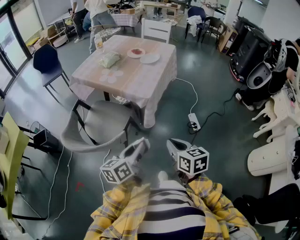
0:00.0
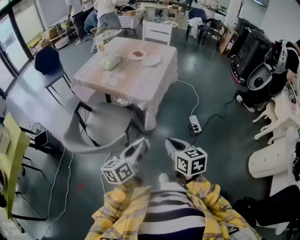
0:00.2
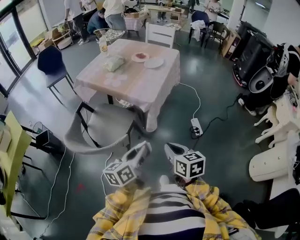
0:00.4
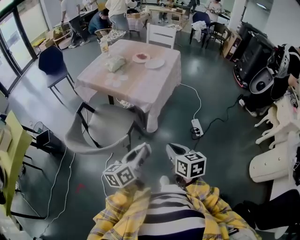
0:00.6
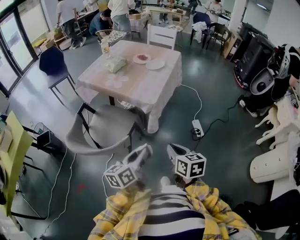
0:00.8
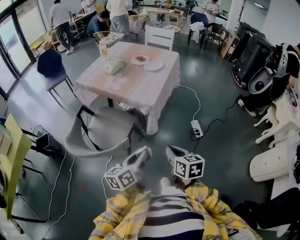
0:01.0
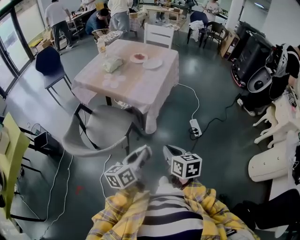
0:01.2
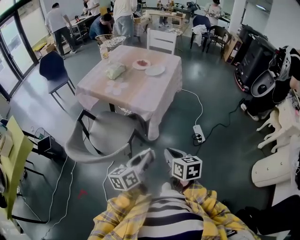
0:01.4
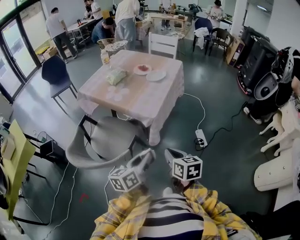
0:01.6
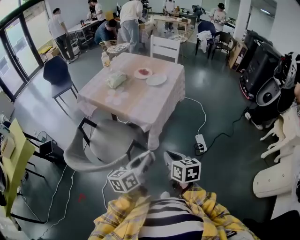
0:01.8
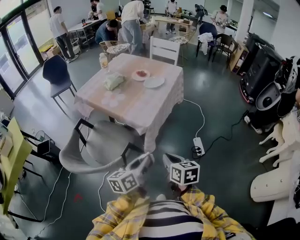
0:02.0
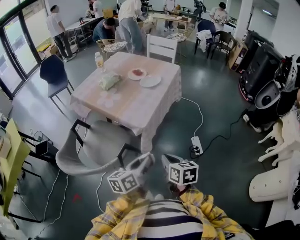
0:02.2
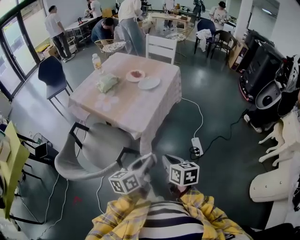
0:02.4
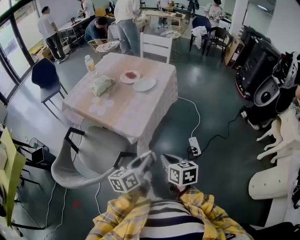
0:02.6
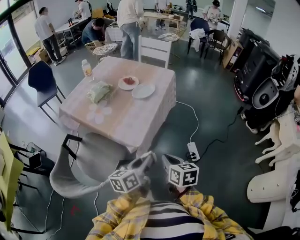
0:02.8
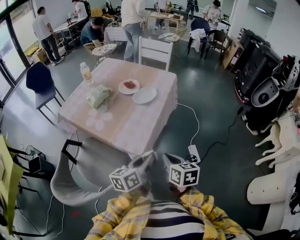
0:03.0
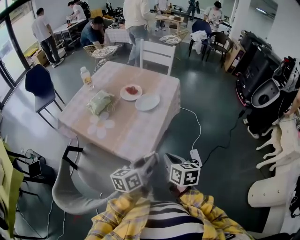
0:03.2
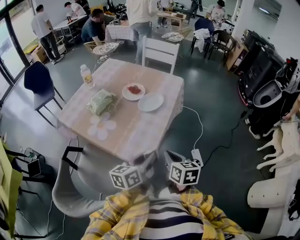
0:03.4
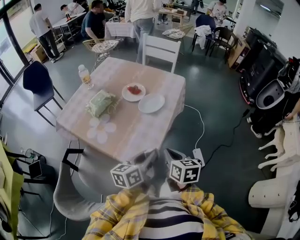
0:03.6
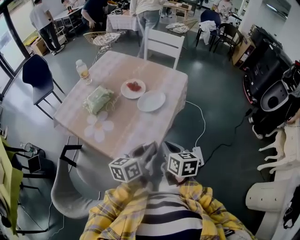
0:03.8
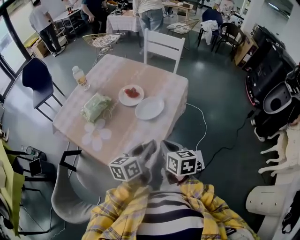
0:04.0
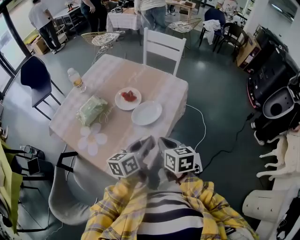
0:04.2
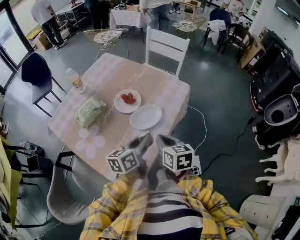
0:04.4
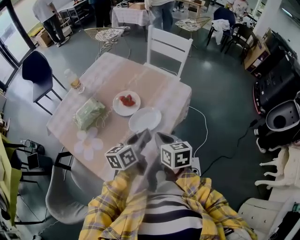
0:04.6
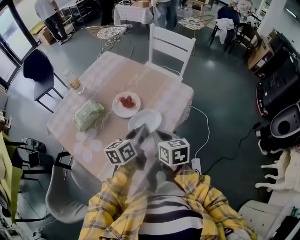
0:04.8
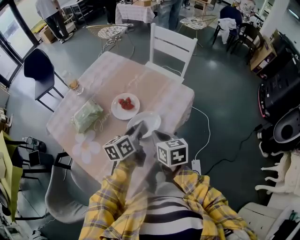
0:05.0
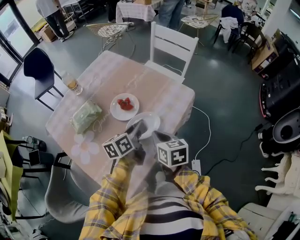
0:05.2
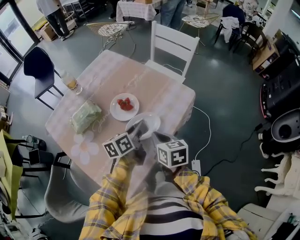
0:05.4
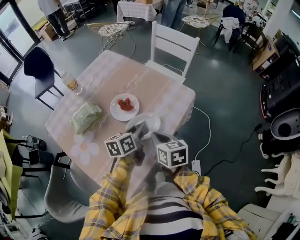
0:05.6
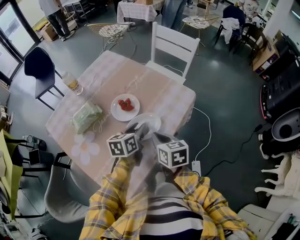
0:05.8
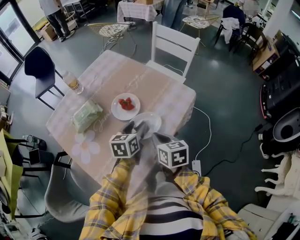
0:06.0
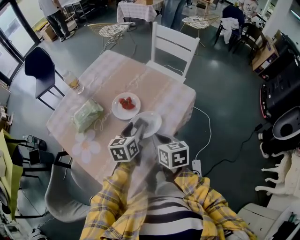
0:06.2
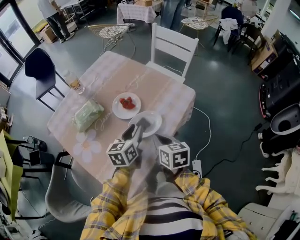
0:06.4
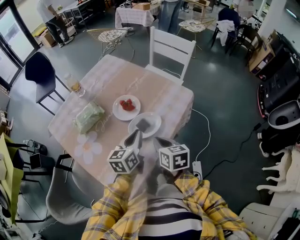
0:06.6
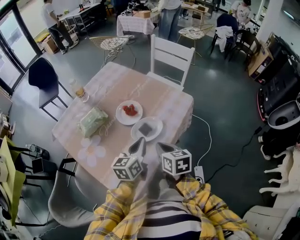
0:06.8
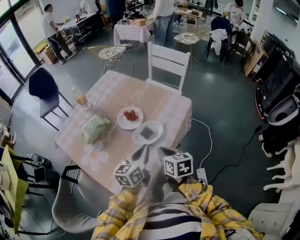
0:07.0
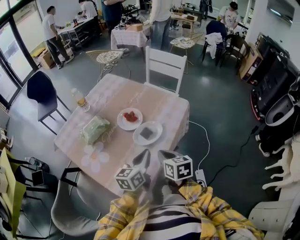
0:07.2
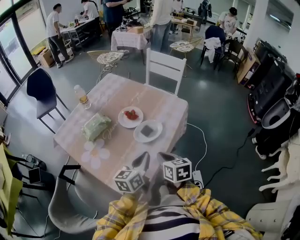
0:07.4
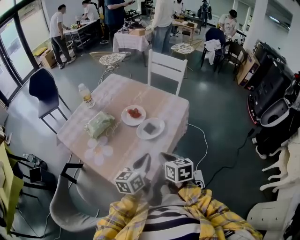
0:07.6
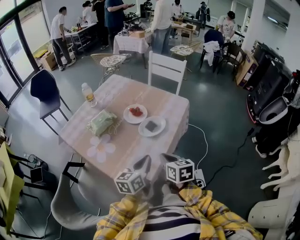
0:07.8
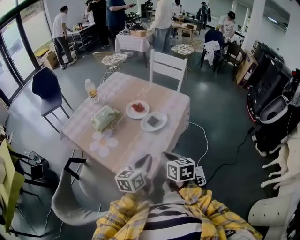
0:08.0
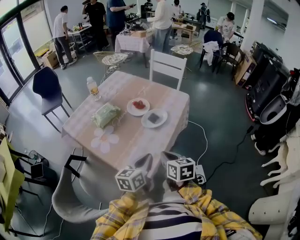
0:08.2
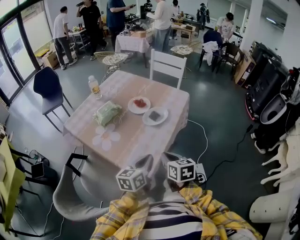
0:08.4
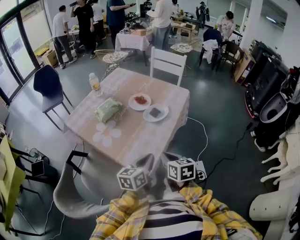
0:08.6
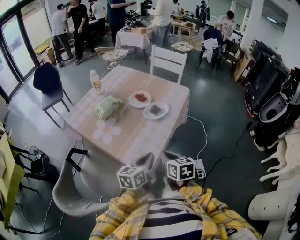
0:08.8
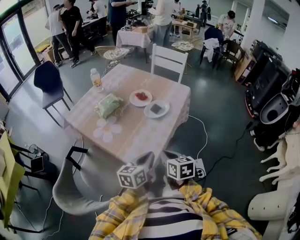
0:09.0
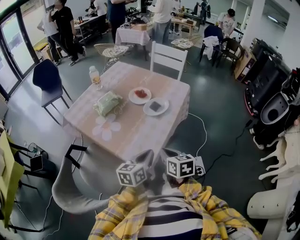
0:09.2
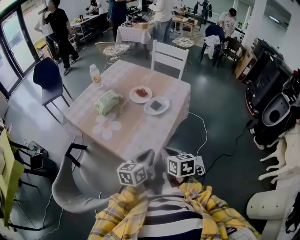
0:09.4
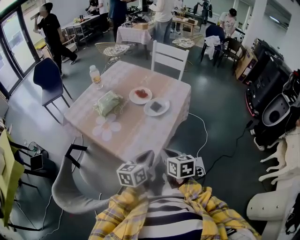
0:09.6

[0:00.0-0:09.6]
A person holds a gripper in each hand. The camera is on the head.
0:00.0 to 0:01.6: The right gripper heads forward, covering roughly 5 cm. The left gripper moves approximately 5 cm.
0:01.6 to 0:03.2: Both grippers travel together forward, some 25 cm.
0:03.2 to 0:04.8: The grippers both shift forward by approximately 30 cm.
0:06.4 to 0:08.0: The two grippers go roughly 20 cm backward. The left gripper closes up.
0:08.0 to 0:09.6: Both grippers travel together backward, approximately 5 cm.

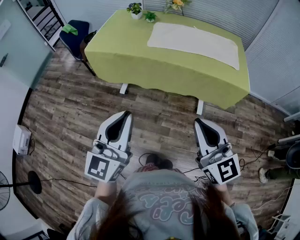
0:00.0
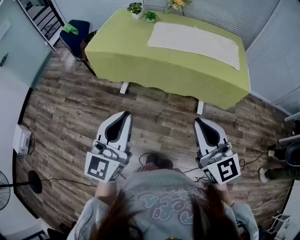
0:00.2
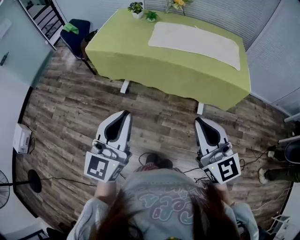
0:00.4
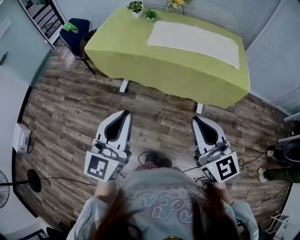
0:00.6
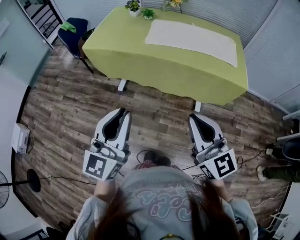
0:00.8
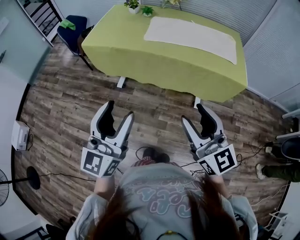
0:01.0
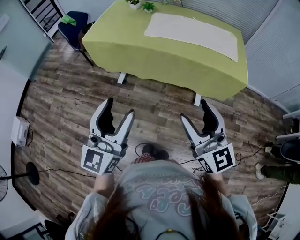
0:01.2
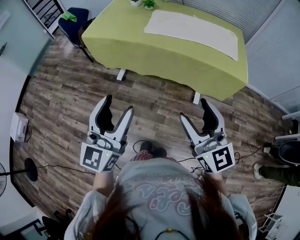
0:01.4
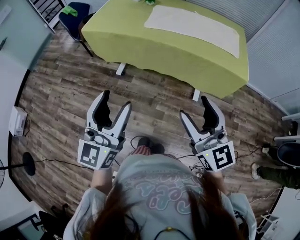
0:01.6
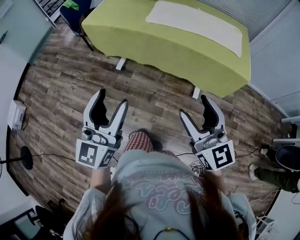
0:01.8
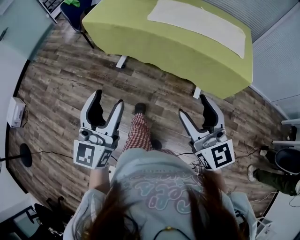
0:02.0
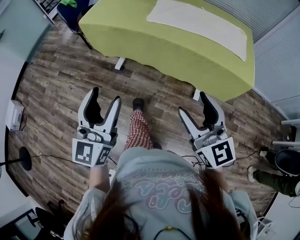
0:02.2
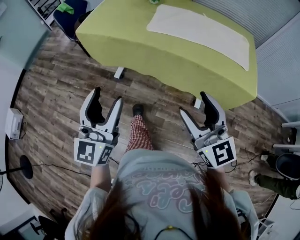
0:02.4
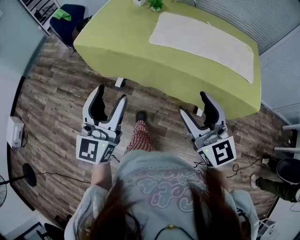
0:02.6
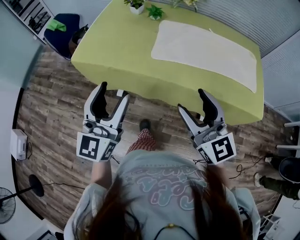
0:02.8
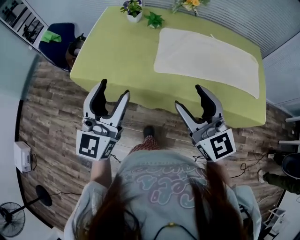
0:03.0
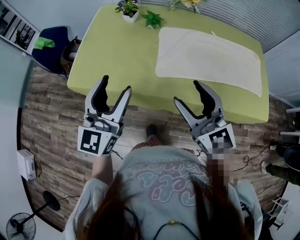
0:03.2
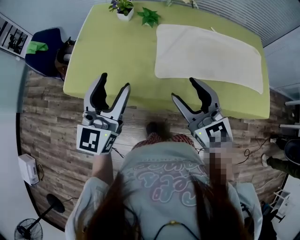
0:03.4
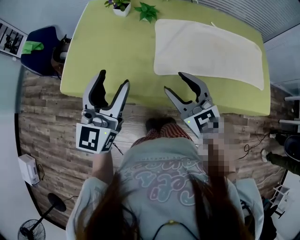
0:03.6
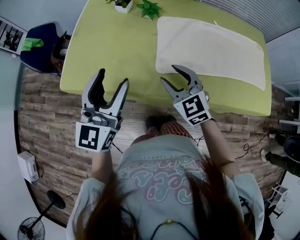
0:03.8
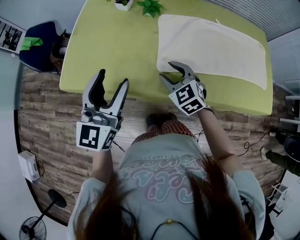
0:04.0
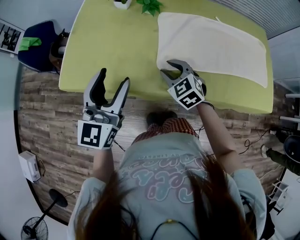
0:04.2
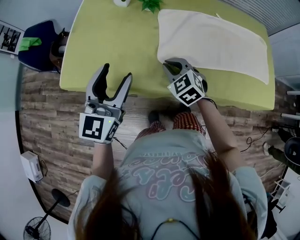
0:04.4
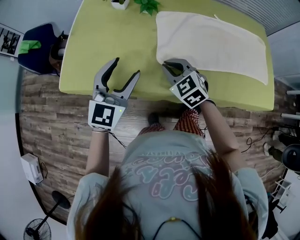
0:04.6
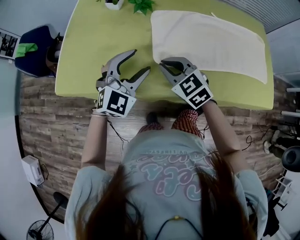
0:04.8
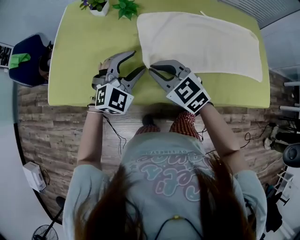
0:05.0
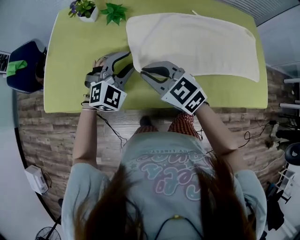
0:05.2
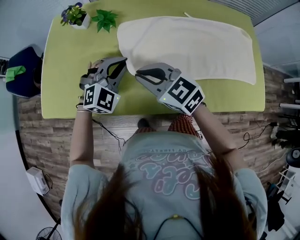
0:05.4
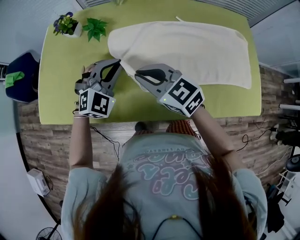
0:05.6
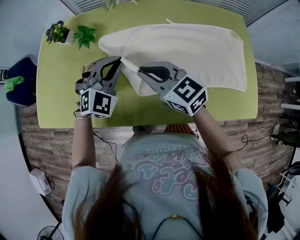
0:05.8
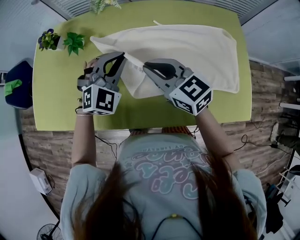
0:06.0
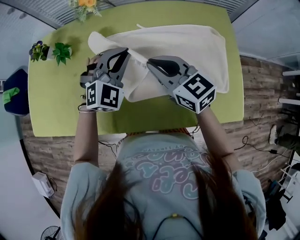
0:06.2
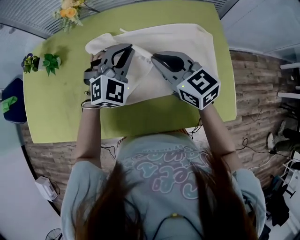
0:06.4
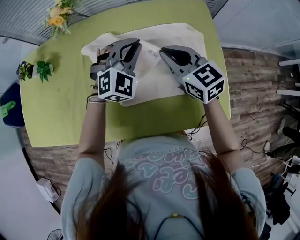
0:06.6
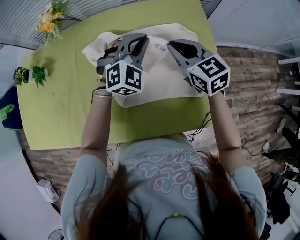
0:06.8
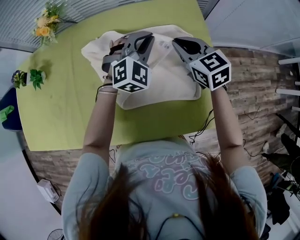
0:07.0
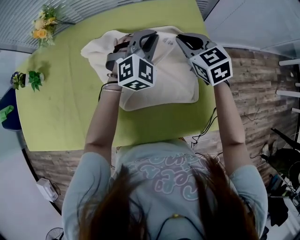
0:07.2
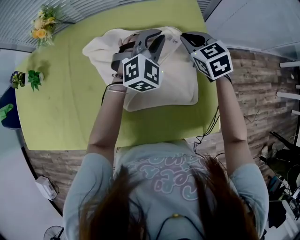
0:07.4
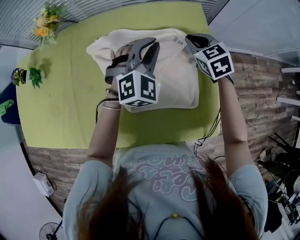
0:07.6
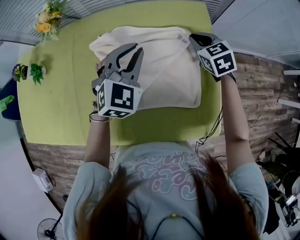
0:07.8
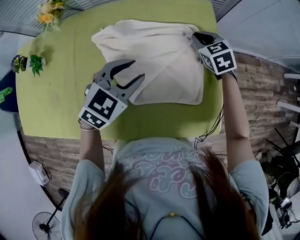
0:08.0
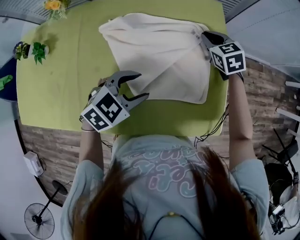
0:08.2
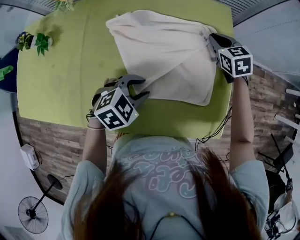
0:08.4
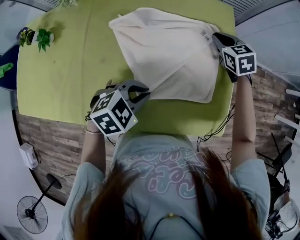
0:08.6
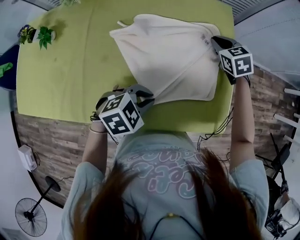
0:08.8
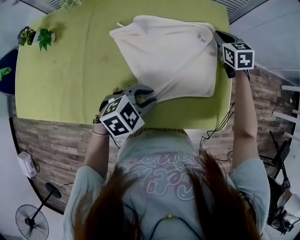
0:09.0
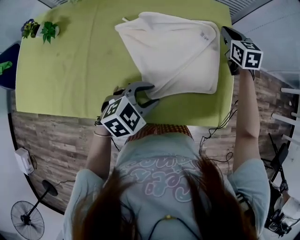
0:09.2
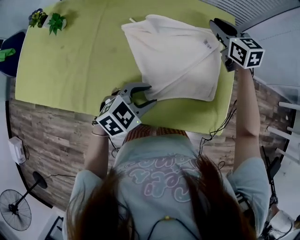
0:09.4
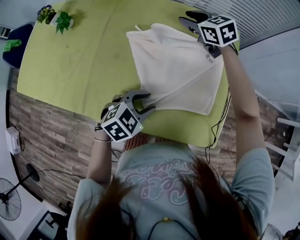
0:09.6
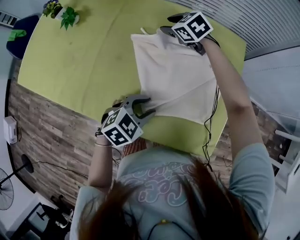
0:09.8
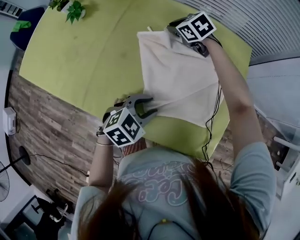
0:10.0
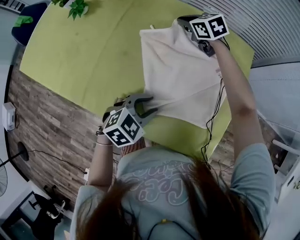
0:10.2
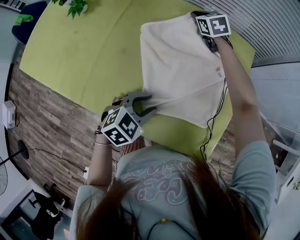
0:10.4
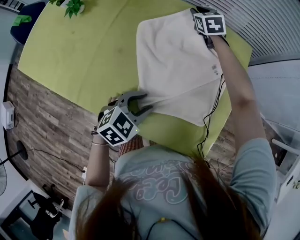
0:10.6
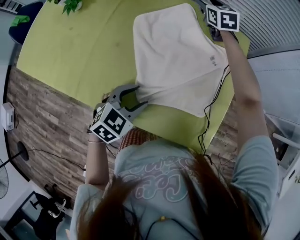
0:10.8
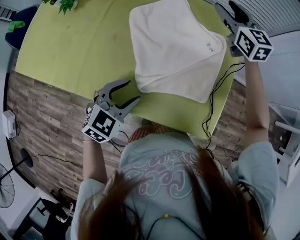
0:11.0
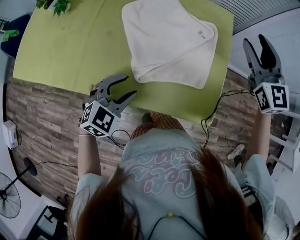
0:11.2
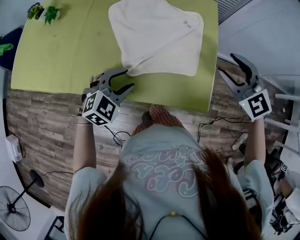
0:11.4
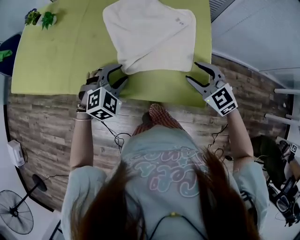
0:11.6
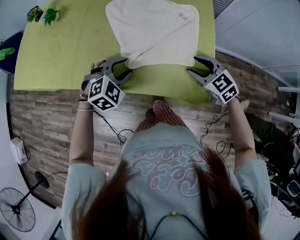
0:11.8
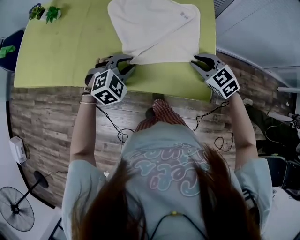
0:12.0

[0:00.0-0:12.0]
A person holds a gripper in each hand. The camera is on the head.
0:00.0 to 0:01.6: The left gripper opens up. Meanwhile the right gripper opens its fingers.
0:01.6 to 0:03.0: Both grippers move forward, about 40 cm.
0:03.0 to 0:04.4: The left gripper moves forward and downward, approximately 15 cm. The right gripper is displaced downward and forward by about 30 cm, angles its fingers downward, by roughly 40 degrees, and closes.
0:04.4 to 0:06.0: The right gripper is displaced to the right and upward by some 25 cm, and rotates roughly 40 degrees. The left gripper shifts roughly 35 cm to the right and forward, rotates around the line of its fingers by about 50 degrees, clockwise from behind, and closes its fingers.
0:06.0 to 0:07.6: Both grippers travel together to the right, about 35 cm. The right gripper turns by roughly 40 degrees.
0:07.6 to 0:09.0: The left gripper moves backward, some 25 cm, turns by some 50 degrees, and opens, then closes again.
0:09.0 to 0:10.4: The right gripper travels upward and back again, approximately 10 cm each way, rotates some 30 degrees, and opens, then closes once more; the left gripper rotates roughly 30 degrees.
0:10.4 to 0:12.0: The left gripper rotates about 30 degrees; the right gripper is displaced backward and to the right by roughly 50 cm, and opens and closes again.

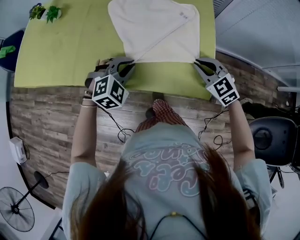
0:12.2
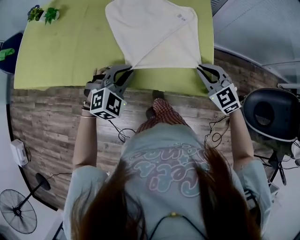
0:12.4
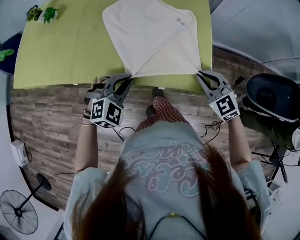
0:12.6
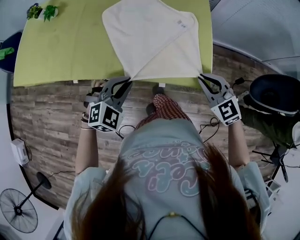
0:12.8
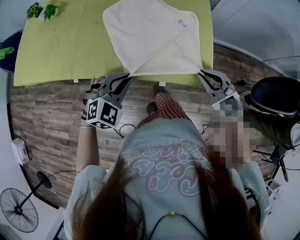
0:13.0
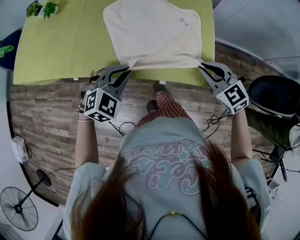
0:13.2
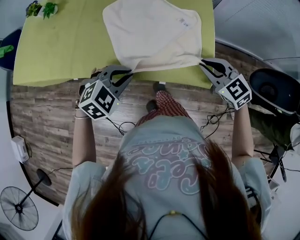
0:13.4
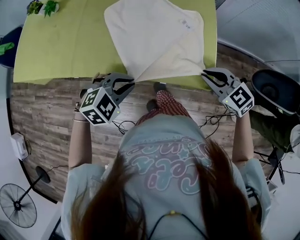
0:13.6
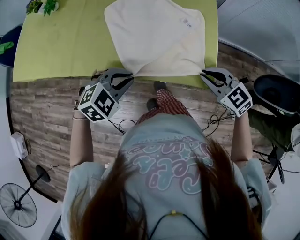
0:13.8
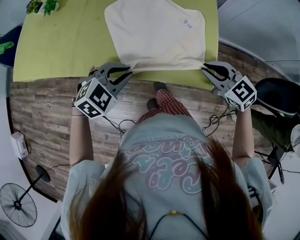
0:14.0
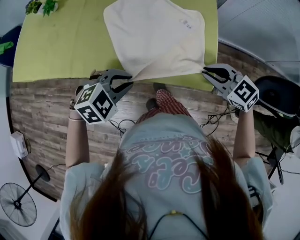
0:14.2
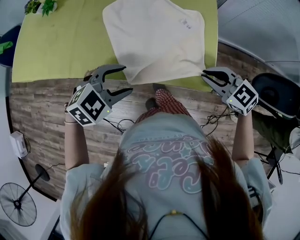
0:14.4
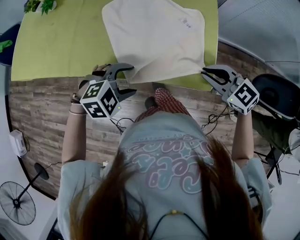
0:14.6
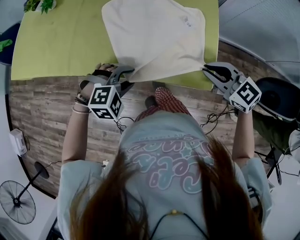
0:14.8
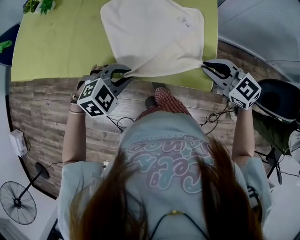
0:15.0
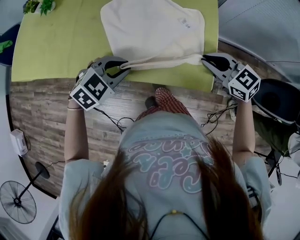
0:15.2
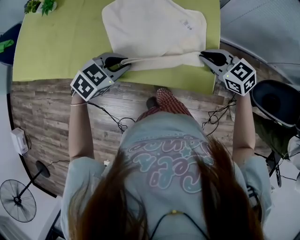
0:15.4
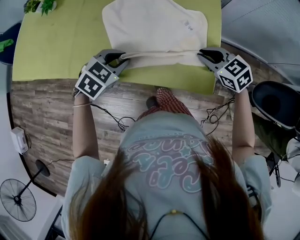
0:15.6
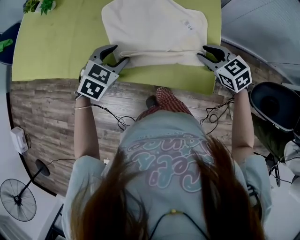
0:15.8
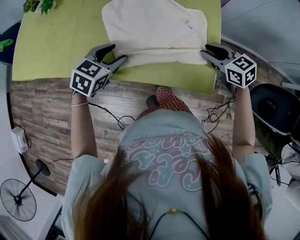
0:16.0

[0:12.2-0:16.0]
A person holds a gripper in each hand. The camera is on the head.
0:12.2 to 0:13.4: The left gripper shifts roughly 10 cm backward; the right gripper travels backward by some 5 cm.
0:13.4 to 0:14.8: The left gripper swivels about 20 degrees, and opens.
0:14.8 to 0:16.0: Both grippers move forward, approximately 10 cm. The right gripper changes its angle by about 20 degrees. Meanwhile the left gripper rolls counterclockwise, seen from behind, by approximately 50 degrees, and closes, then opens again.
